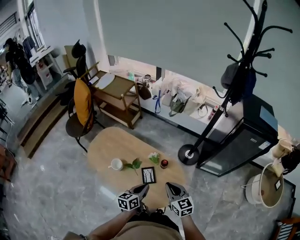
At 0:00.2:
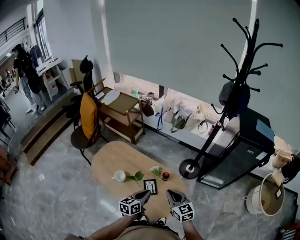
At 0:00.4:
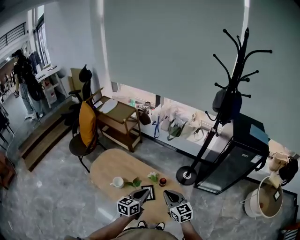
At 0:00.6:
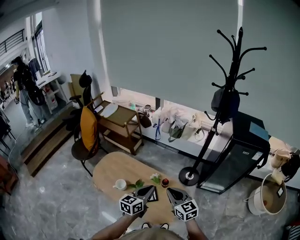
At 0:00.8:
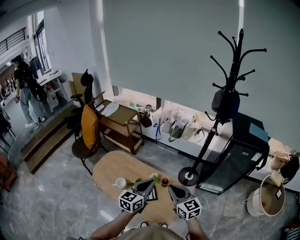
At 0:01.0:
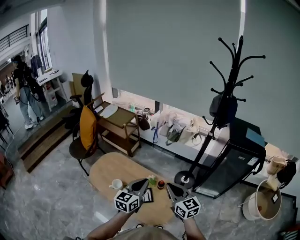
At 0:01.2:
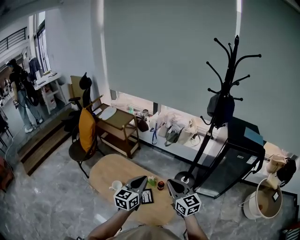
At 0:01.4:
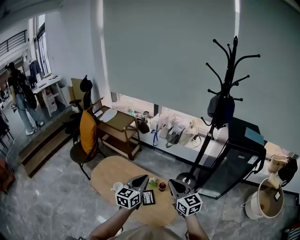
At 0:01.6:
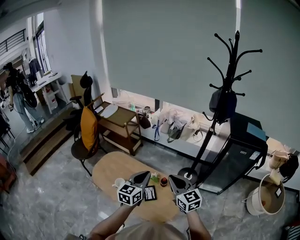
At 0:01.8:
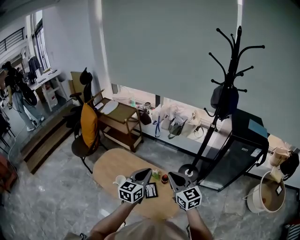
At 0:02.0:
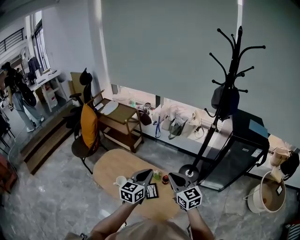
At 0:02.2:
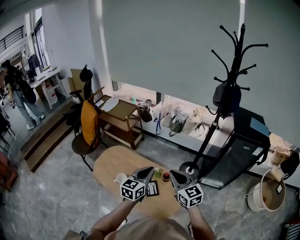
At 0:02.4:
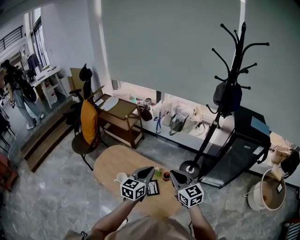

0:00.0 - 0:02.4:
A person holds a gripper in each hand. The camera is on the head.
0:00.0 - 0:01.2: Both grippers move upward, roughly 20 cm. The left gripper swivels some 30 degrees.
0:01.2 - 0:02.4: The grippers move only a little.

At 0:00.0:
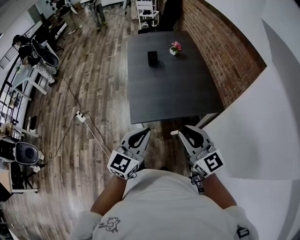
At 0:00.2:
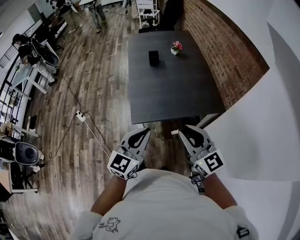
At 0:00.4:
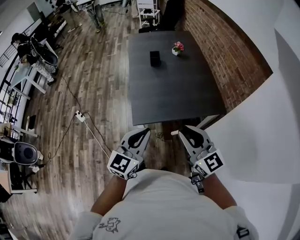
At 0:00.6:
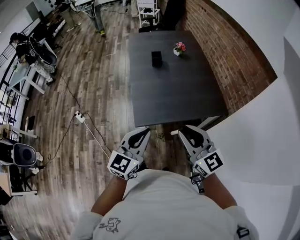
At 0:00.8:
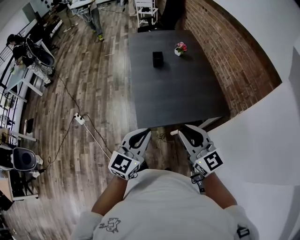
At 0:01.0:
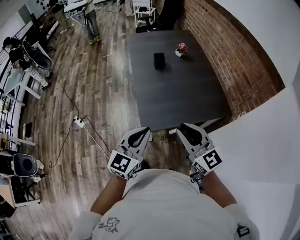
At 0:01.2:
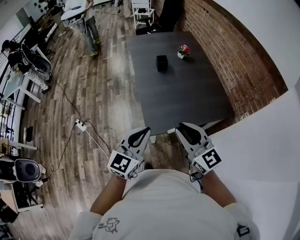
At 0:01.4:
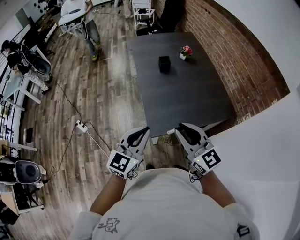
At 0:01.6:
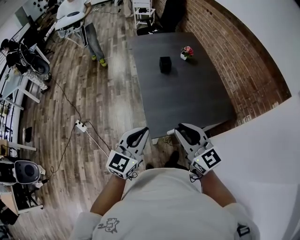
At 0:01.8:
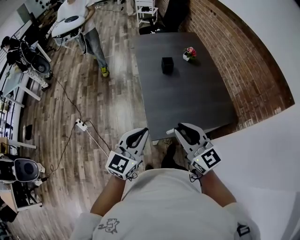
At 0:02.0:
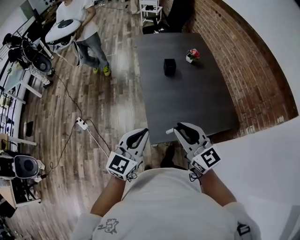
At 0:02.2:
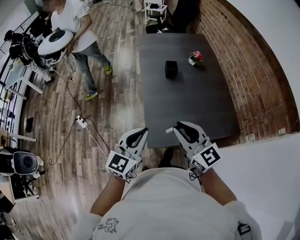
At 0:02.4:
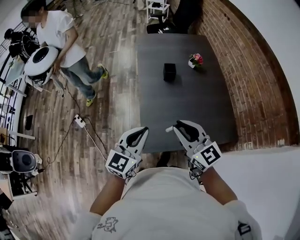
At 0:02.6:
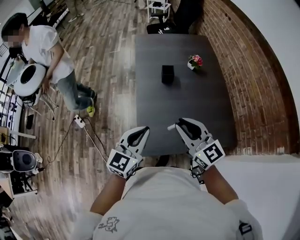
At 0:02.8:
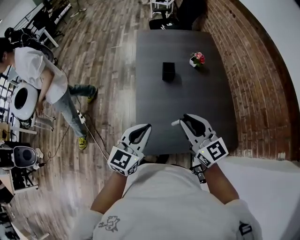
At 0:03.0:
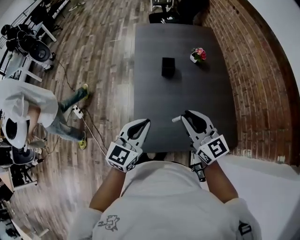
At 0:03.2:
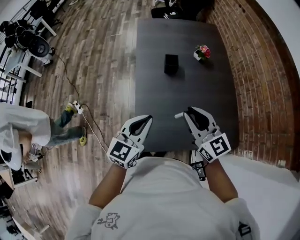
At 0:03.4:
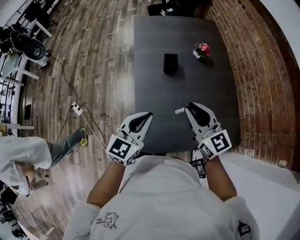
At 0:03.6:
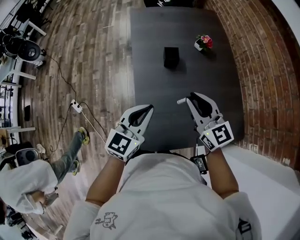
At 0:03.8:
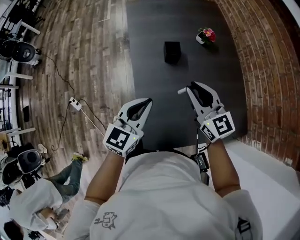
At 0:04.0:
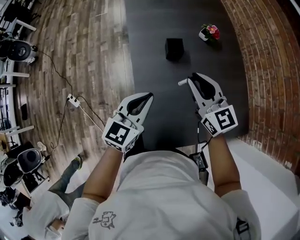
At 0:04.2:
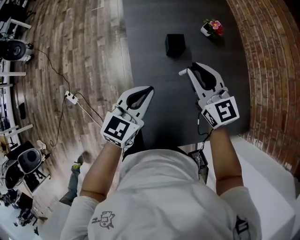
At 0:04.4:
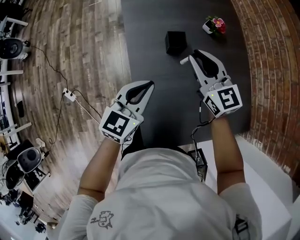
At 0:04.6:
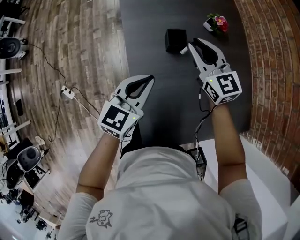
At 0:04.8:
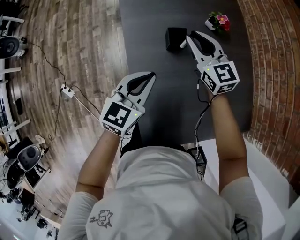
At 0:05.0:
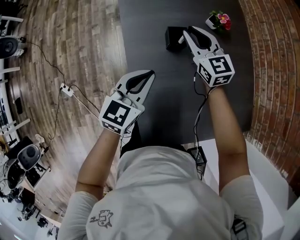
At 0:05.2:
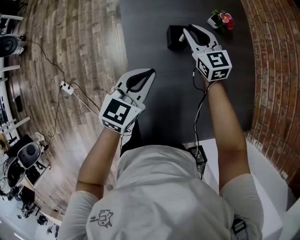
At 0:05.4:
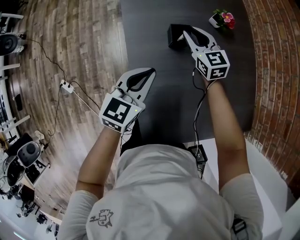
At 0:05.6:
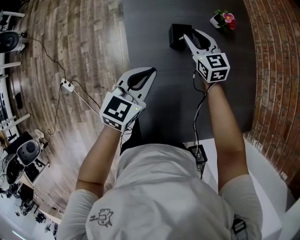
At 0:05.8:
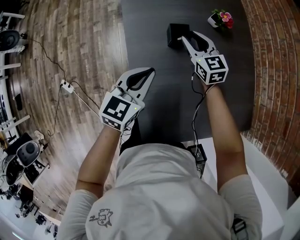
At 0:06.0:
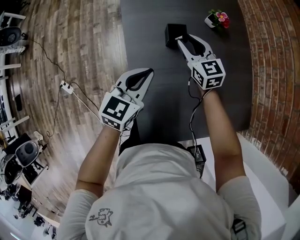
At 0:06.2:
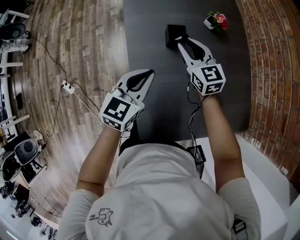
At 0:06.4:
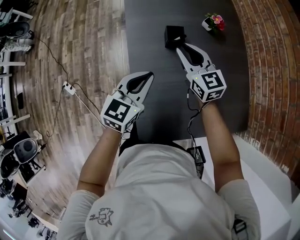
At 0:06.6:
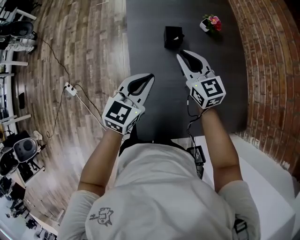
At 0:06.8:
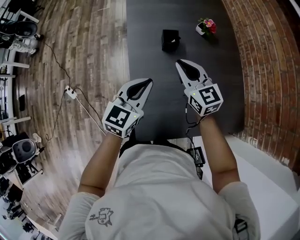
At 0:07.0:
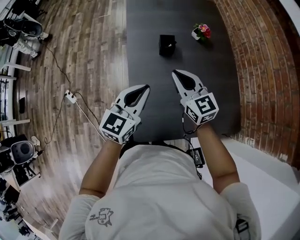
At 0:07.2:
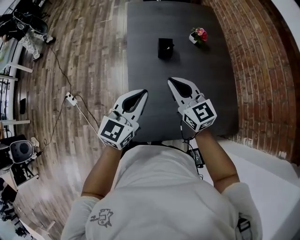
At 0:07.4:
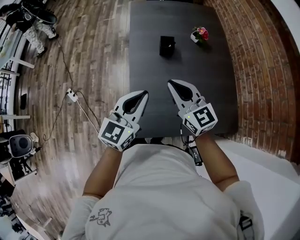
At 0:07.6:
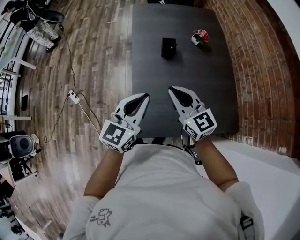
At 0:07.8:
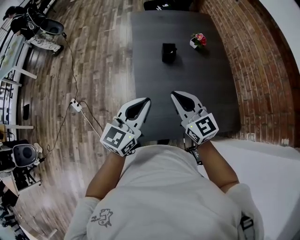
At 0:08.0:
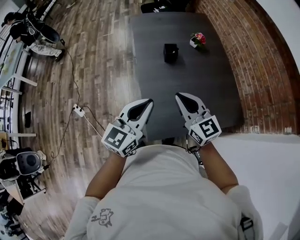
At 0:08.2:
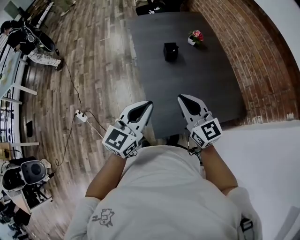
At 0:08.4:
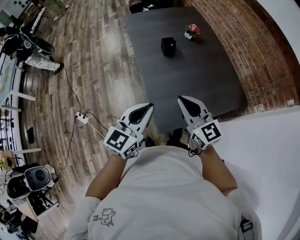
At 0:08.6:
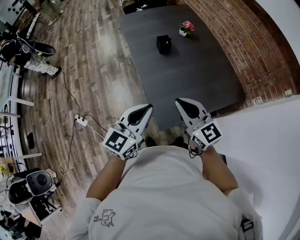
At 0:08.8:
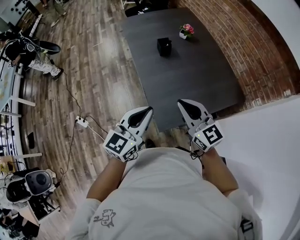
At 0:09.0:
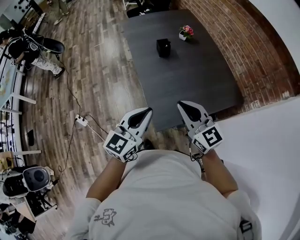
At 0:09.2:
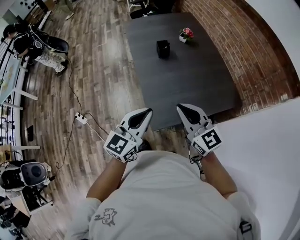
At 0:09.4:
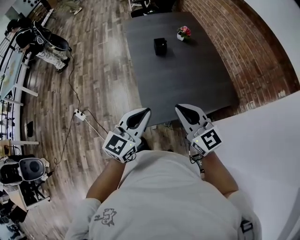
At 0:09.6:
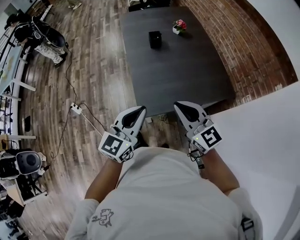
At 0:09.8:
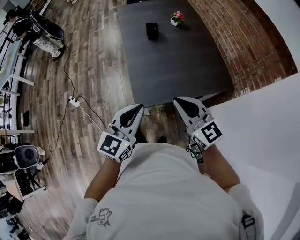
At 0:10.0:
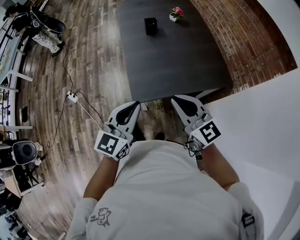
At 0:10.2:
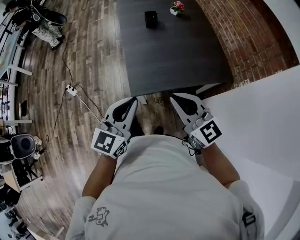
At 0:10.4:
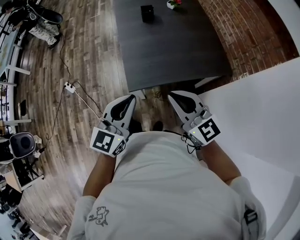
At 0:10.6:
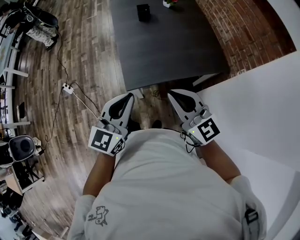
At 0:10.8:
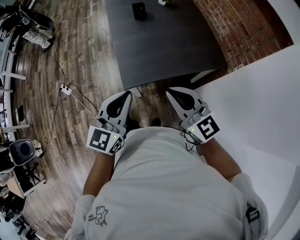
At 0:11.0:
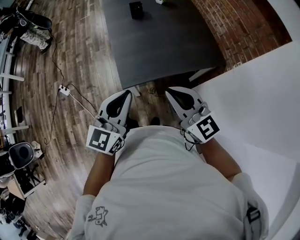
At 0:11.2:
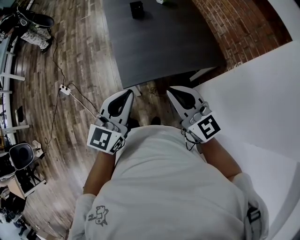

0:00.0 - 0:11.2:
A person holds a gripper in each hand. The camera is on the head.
0:00.0 - 0:01.6: The grippers both shift to the left and forward by some 25 cm.
0:01.6 - 0:03.2: Both grippers travel together forward and to the right, roughly 25 cm.
0:03.2 - 0:04.8: Both grippers move forward and downward, about 30 cm.
0:04.8 - 0:06.4: The right gripper goes some 10 cm backward. The left gripper moves backward, roughly 5 cm.
0:06.4 - 0:08.0: The two grippers go some 30 cm backward and upward. The right gripper closes its fingers.
0:08.0 - 0:09.6: The two grippers go about 20 cm backward.
0:09.6 - 0:11.2: Both grippers move backward, about 10 cm.

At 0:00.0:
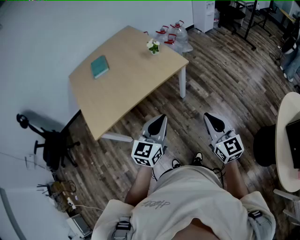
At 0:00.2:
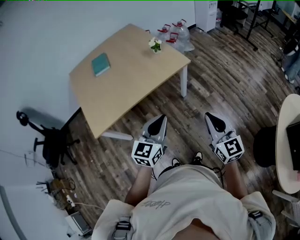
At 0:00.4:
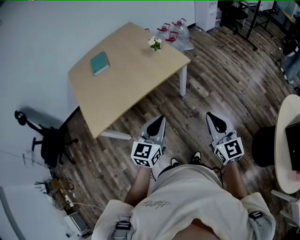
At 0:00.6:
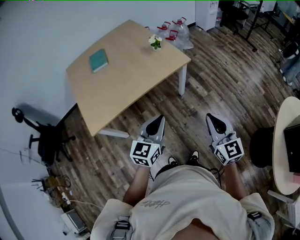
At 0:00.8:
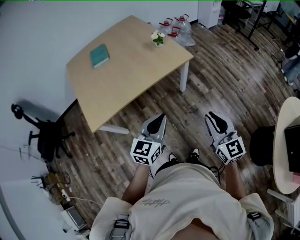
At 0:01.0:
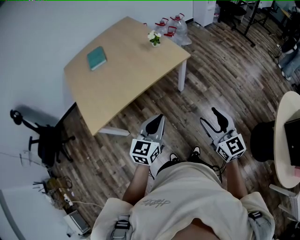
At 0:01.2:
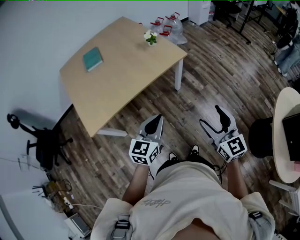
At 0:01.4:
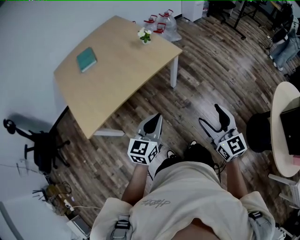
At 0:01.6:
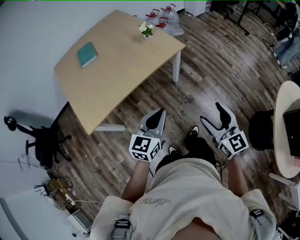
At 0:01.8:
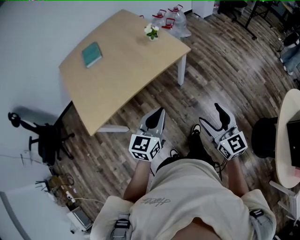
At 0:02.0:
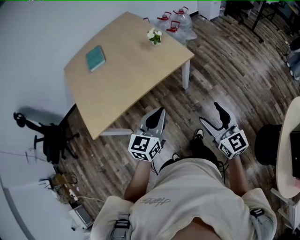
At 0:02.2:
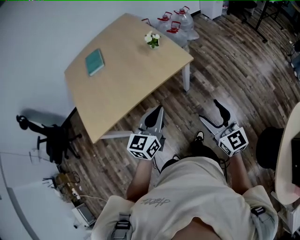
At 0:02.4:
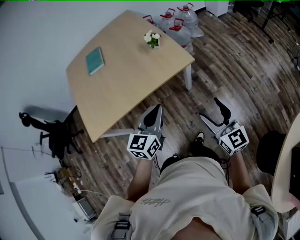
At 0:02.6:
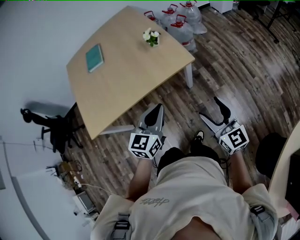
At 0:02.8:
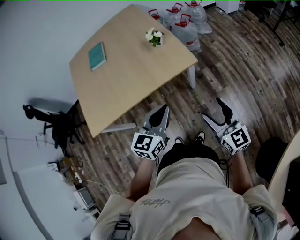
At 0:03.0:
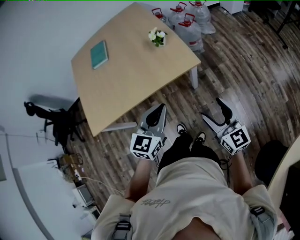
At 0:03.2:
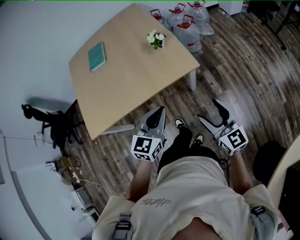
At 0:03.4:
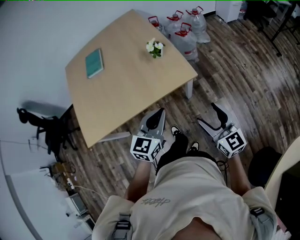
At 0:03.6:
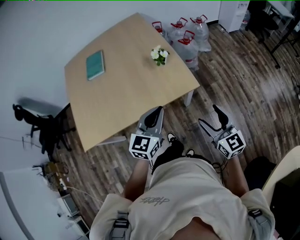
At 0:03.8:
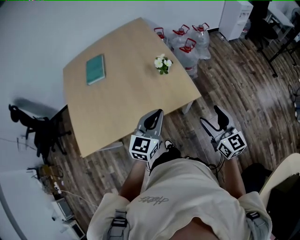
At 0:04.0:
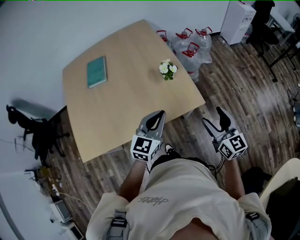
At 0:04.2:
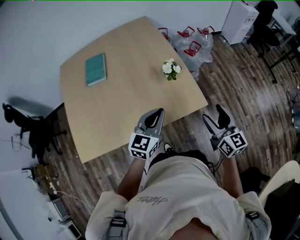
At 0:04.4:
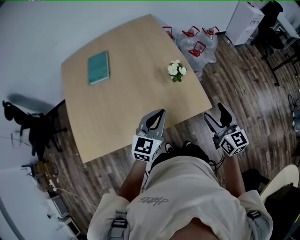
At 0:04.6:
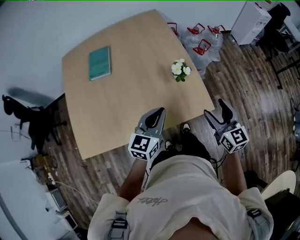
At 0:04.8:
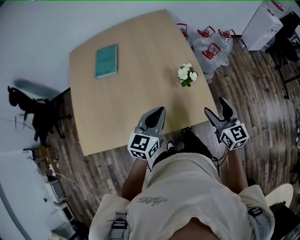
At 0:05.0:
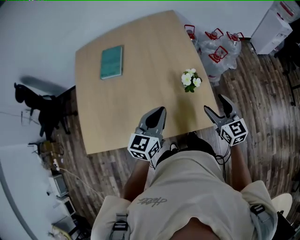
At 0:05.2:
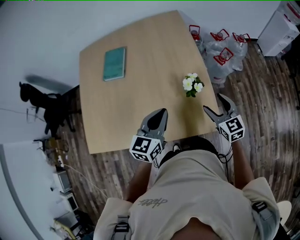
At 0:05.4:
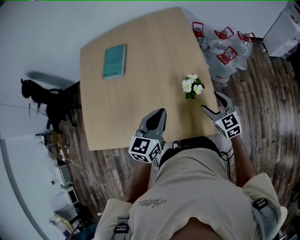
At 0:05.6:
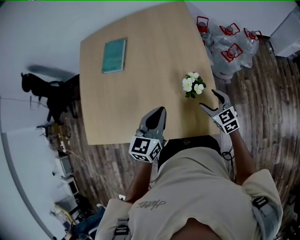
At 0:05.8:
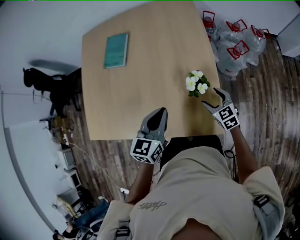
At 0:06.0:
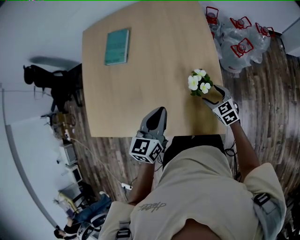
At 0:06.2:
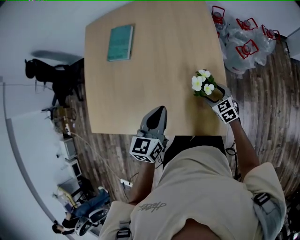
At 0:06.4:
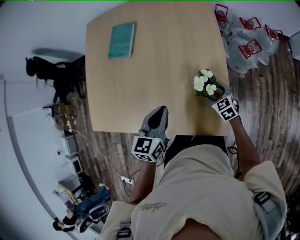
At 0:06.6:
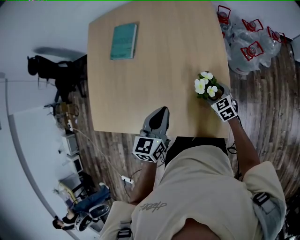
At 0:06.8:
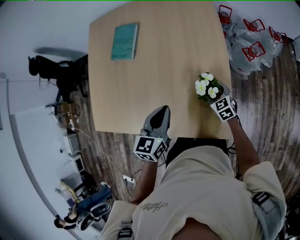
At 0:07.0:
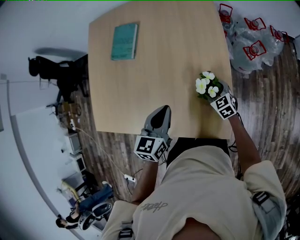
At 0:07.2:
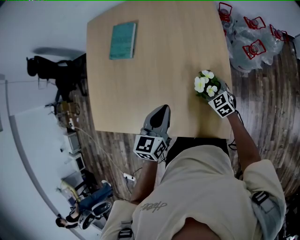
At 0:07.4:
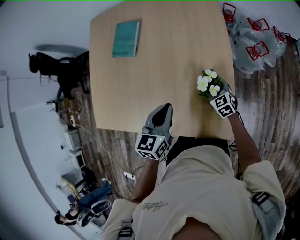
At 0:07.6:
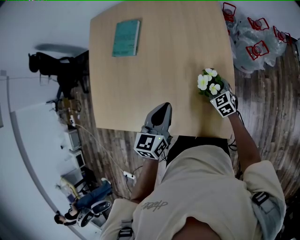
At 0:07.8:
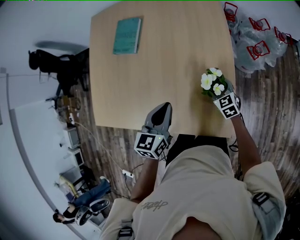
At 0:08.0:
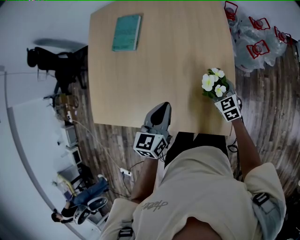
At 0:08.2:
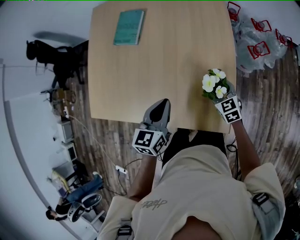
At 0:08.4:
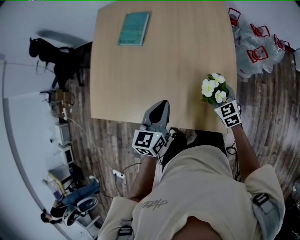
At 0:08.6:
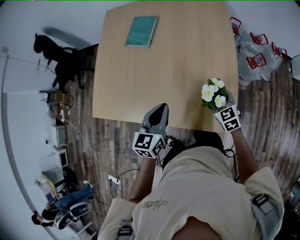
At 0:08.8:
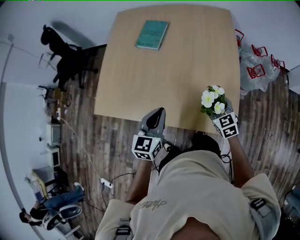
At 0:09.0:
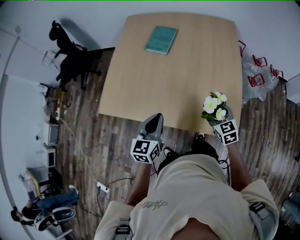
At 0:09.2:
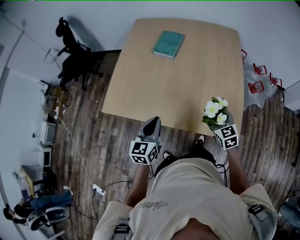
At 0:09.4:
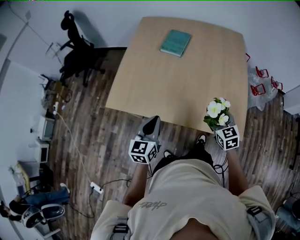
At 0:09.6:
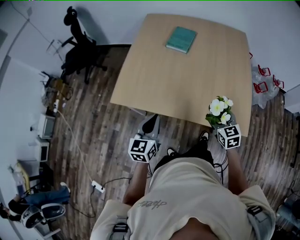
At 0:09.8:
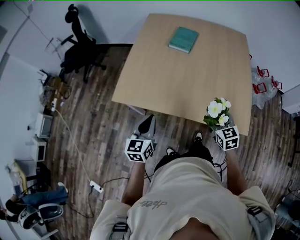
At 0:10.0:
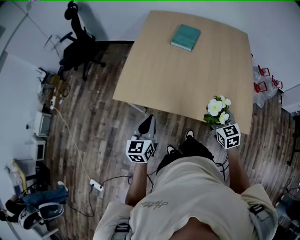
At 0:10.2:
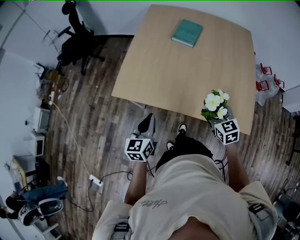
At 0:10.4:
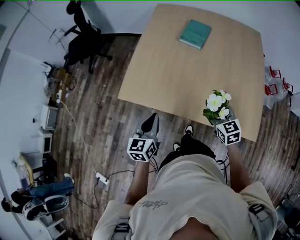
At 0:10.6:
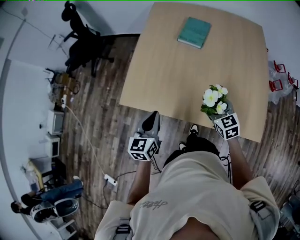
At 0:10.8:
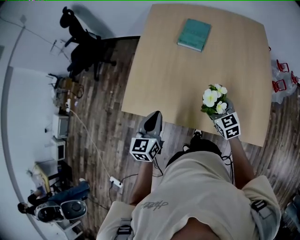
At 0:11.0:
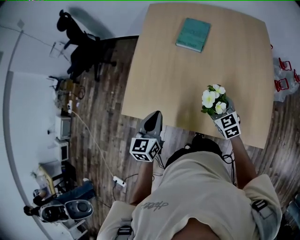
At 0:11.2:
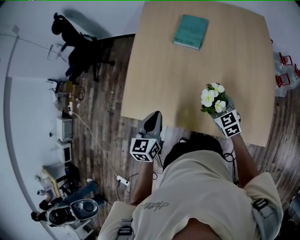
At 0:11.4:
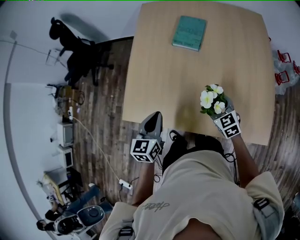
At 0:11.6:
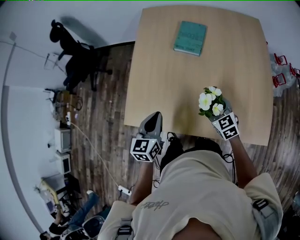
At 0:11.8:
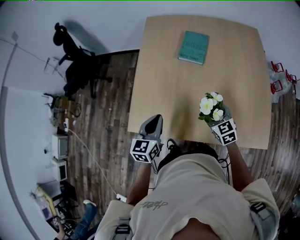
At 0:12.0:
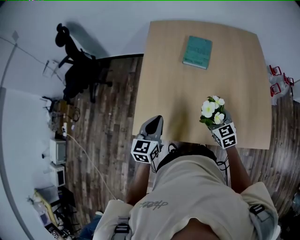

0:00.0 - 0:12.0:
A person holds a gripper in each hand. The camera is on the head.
0:00.0 - 0:01.6: The right gripper opens its fingers.
0:01.6 - 0:03.0: Both grippers travel together forward and to the right, about 20 cm.
0:03.0 - 0:04.4: The grippers both shift forward by roughly 20 cm.
0:04.4 - 0:06.0: The right gripper ends up about 30 cm from where it was, and swivels about 50 degrees, while the left gripper moves some 15 cm, and turns by about 30 degrees.
0:06.0 - 0:07.6: The right gripper moves forward, roughly 5 cm.
0:07.6 - 0:09.0: The right gripper heads upward, backward and to the left, covering roughly 25 cm. Meanwhile the left gripper heads to the left and backward, covering roughly 20 cm.
0:09.0 - 0:10.4: The grippers both shift to the left by about 20 cm.
0:10.4 - 0:12.0: The left gripper heads forward, covering some 15 cm; the right gripper travels forward and to the left by roughly 15 cm.
